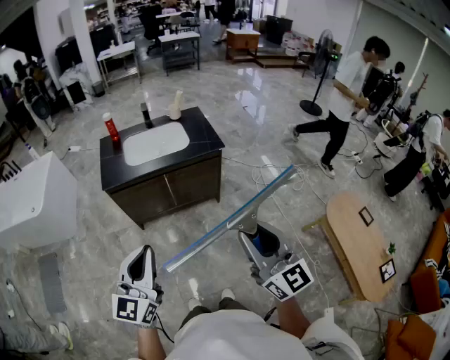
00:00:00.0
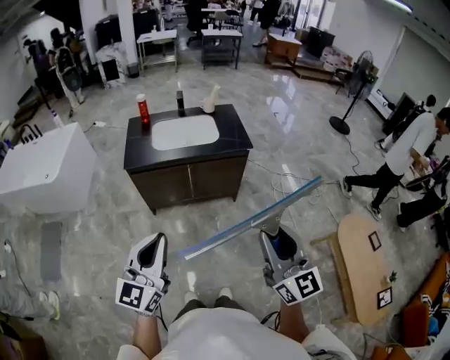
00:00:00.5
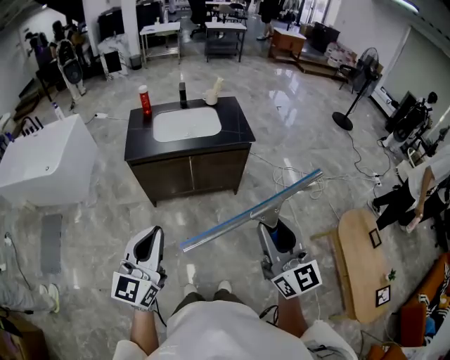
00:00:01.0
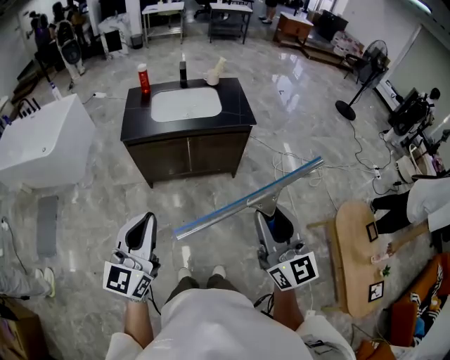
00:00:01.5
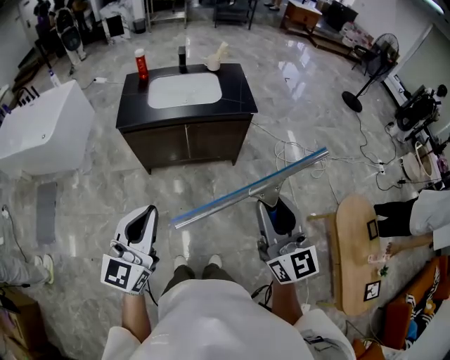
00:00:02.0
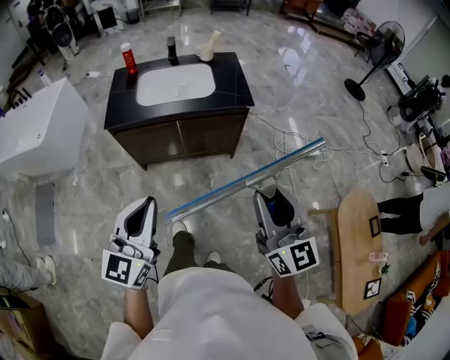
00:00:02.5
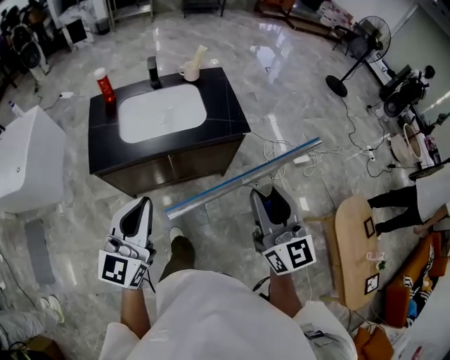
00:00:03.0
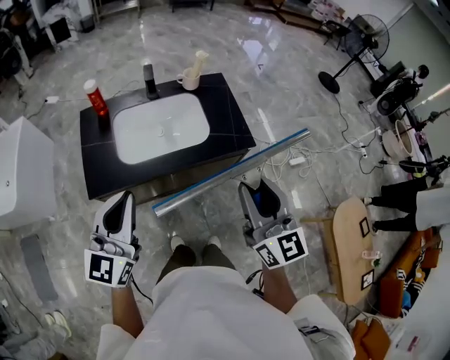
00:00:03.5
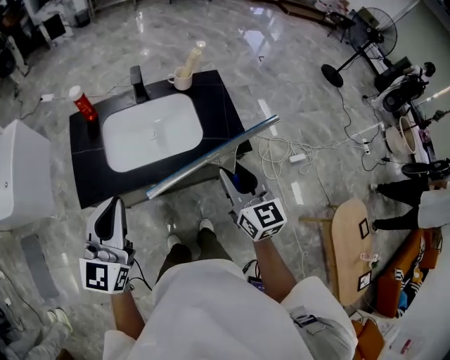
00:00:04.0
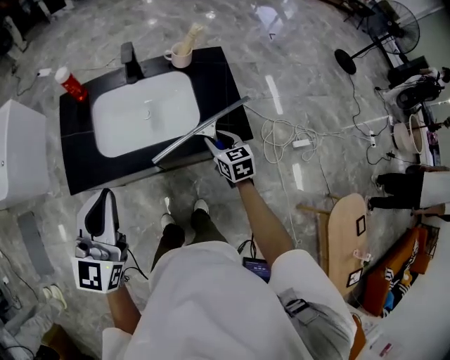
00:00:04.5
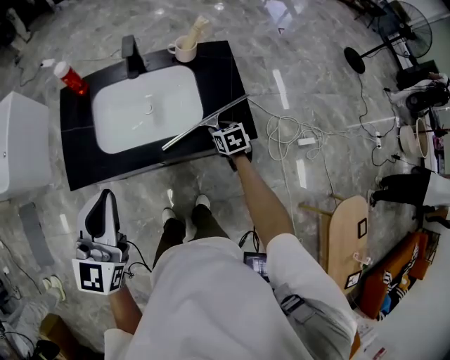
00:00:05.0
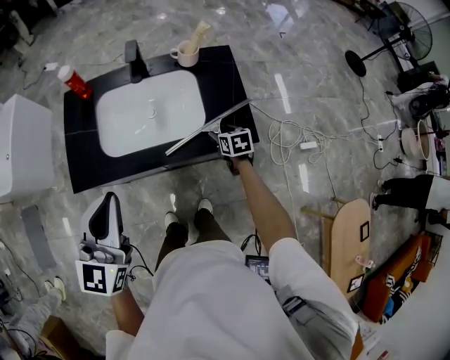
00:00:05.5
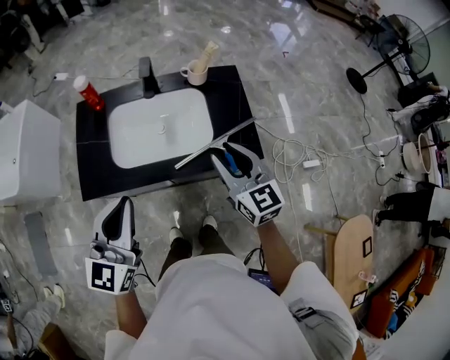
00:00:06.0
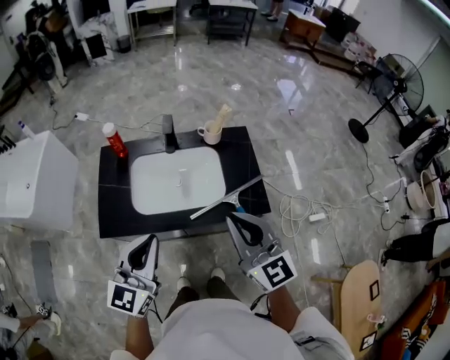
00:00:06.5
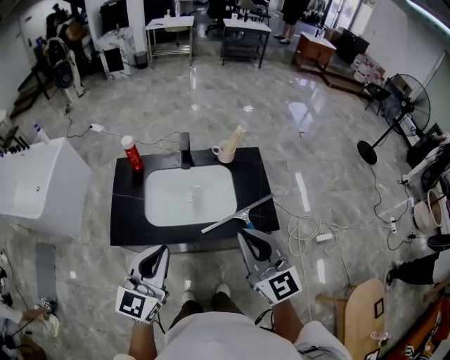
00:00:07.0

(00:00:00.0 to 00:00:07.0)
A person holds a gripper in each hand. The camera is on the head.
00:00:00.0 - 00:00:02.0: The right gripper moves about 5 cm.
00:00:02.0 - 00:00:03.5: Both grippers are carried forward, approximately 40 cm.
00:00:03.5 - 00:00:05.0: The right gripper travels downward and forward by approximately 50 cm, and tips its fingers downward by some 60 degrees, while the left gripper goes about 10 cm forward and to the right.
00:00:05.0 - 00:00:07.0: The right gripper shifts some 40 cm upward, points its fingers approximately 50 degrees further upward, and closes up.

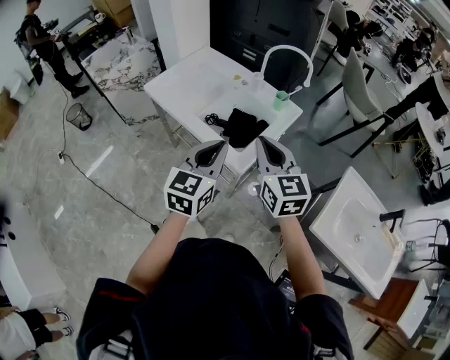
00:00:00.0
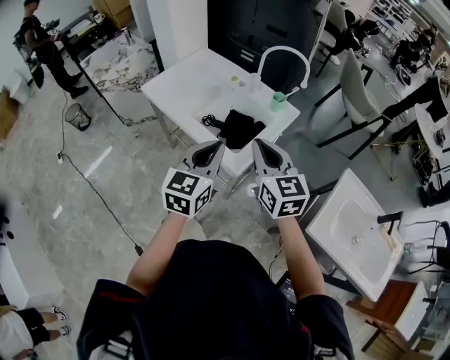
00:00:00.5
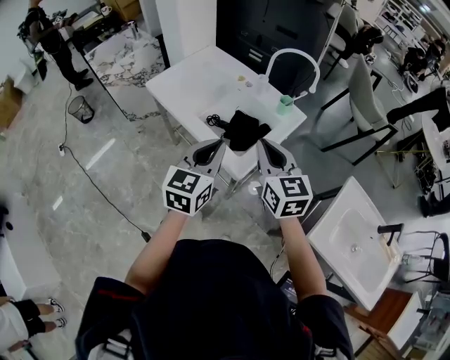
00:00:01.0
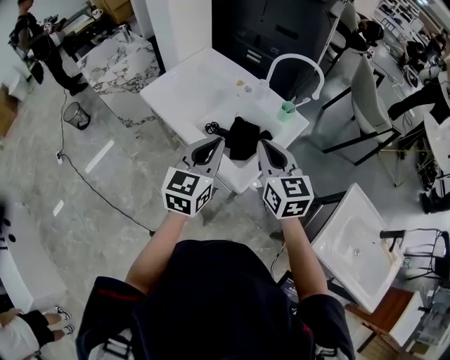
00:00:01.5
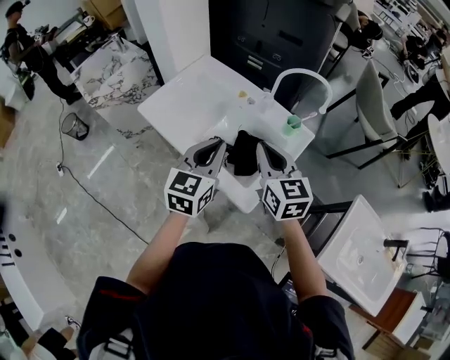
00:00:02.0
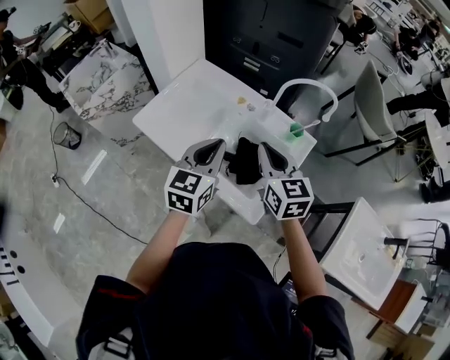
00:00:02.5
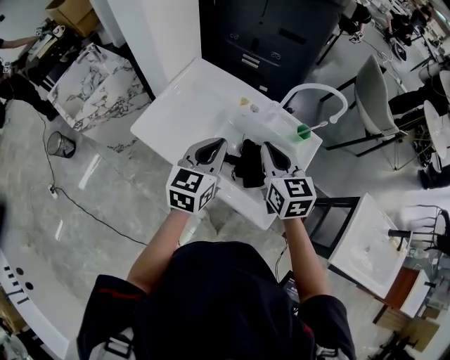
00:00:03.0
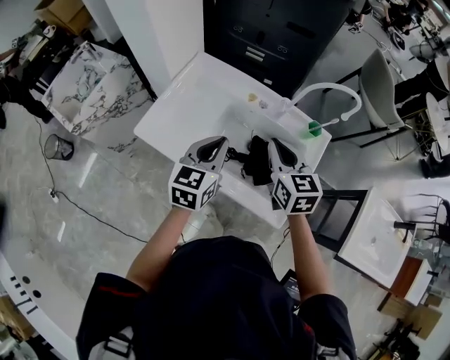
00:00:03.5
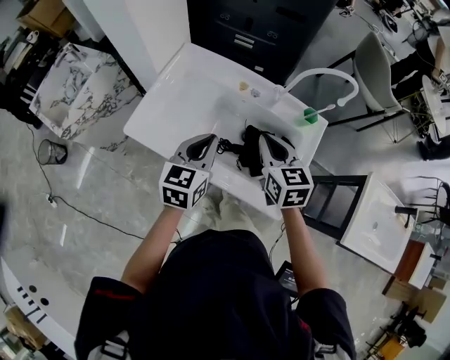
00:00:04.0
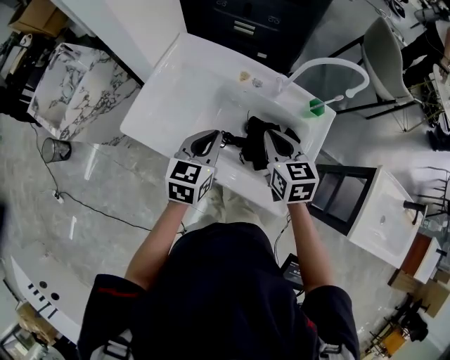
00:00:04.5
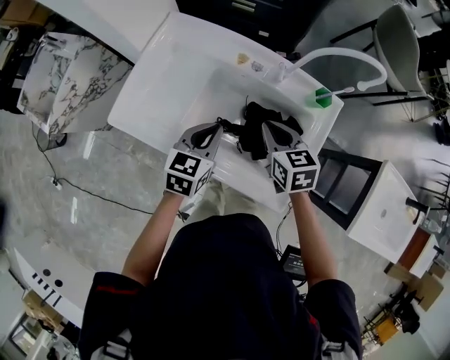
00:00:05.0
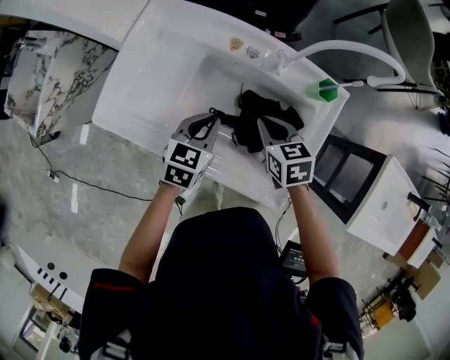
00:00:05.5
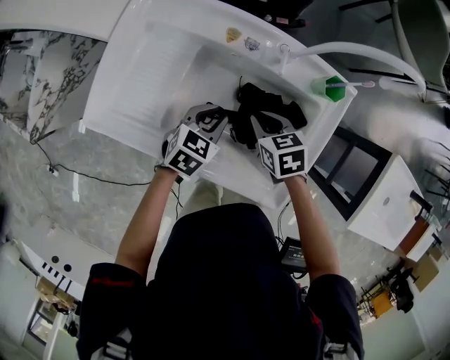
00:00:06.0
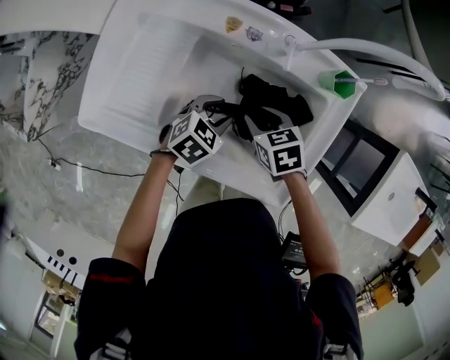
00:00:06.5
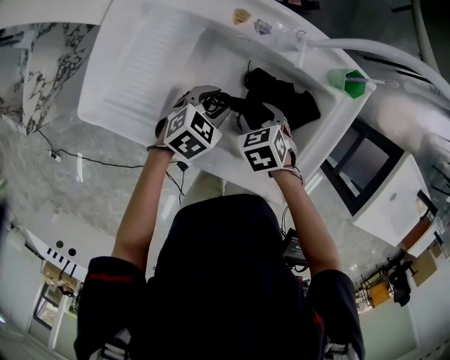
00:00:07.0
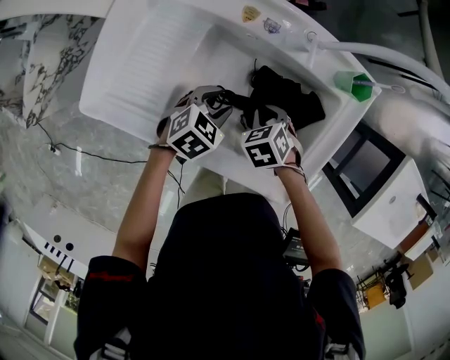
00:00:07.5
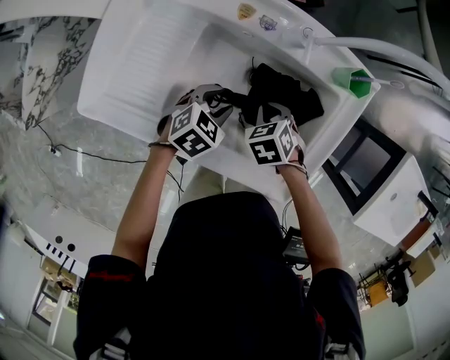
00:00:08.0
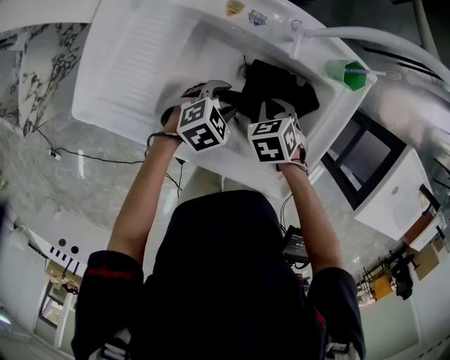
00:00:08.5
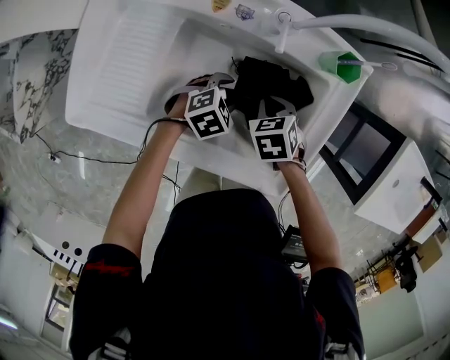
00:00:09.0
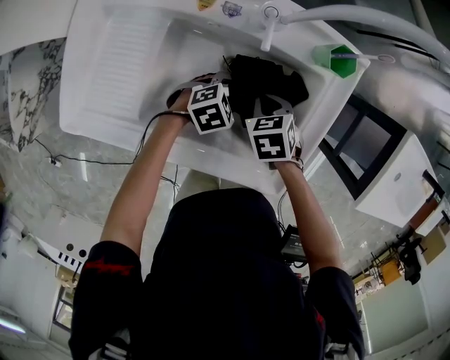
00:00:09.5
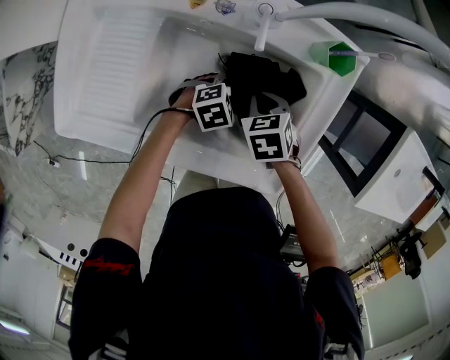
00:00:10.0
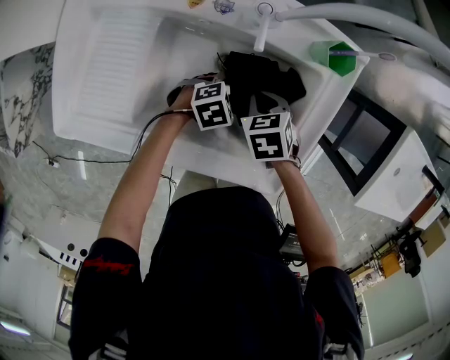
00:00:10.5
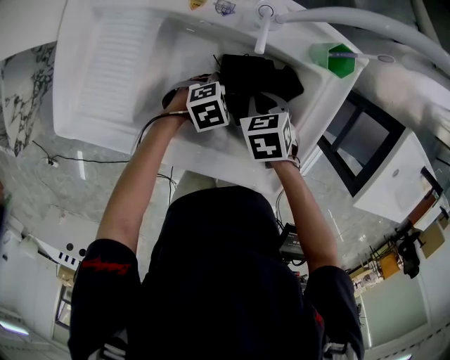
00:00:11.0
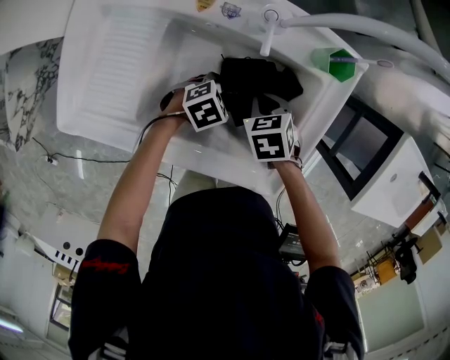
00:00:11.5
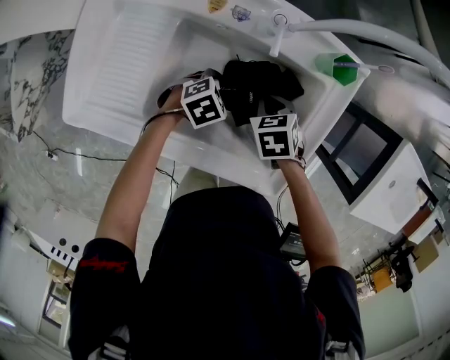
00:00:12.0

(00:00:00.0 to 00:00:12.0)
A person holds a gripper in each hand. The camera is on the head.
00:00:00.0 - 00:00:02.0: The grippers both shift forward by roughly 15 cm.
00:00:02.0 - 00:00:04.0: The right gripper shifts roughly 15 cm forward, downward and to the left; the left gripper shifts about 20 cm to the left, forward and downward.
00:00:04.0 - 00:00:06.0: Both grippers move downward, about 20 cm. The right gripper turns by roughly 30 degrees; the left gripper rotates some 40 degrees.
00:00:06.0 - 00:00:08.0: The two grippers go some 5 cm downward. The right gripper rotates roughly 30 degrees, and opens, then closes once more.
00:00:08.0 - 00:00:10.0: The left gripper moves some 15 cm, and turns by about 30 degrees.
00:00:10.0 - 00:00:12.0: The left gripper ends up approximately 5 cm from where it was.

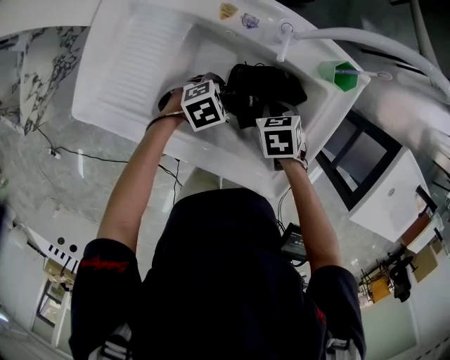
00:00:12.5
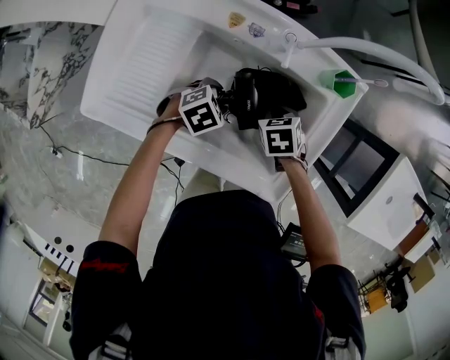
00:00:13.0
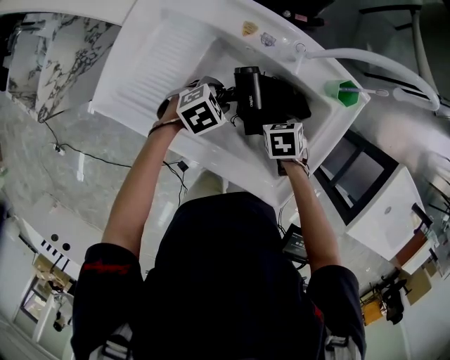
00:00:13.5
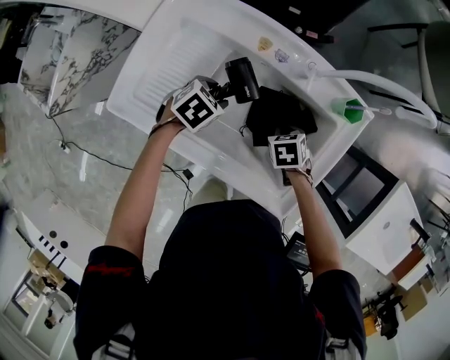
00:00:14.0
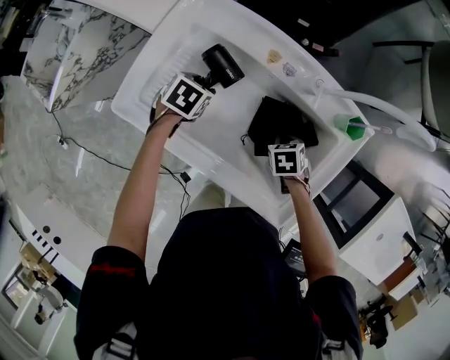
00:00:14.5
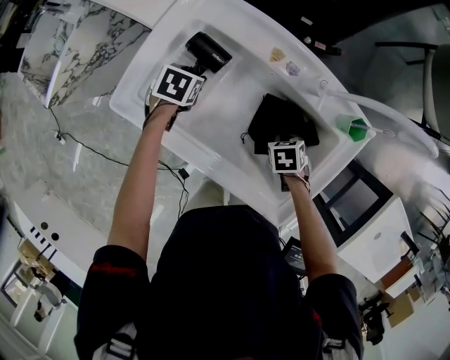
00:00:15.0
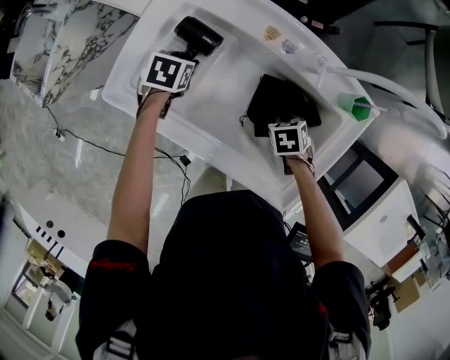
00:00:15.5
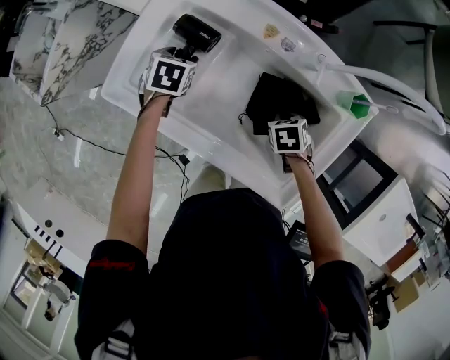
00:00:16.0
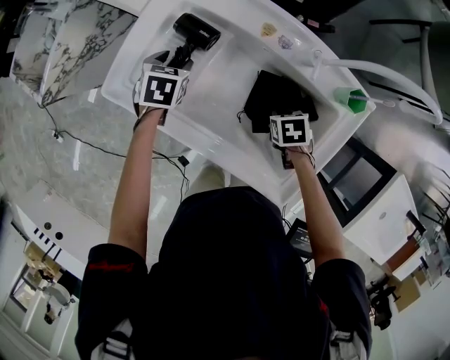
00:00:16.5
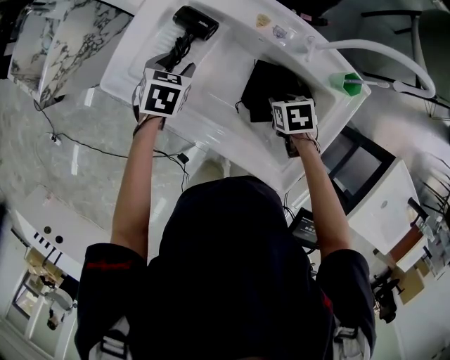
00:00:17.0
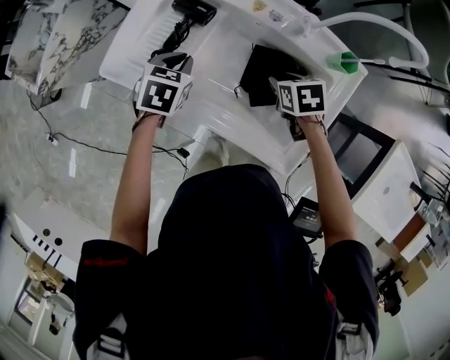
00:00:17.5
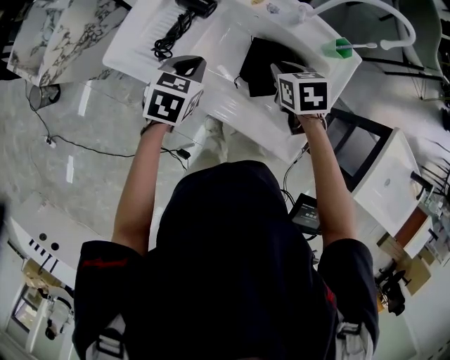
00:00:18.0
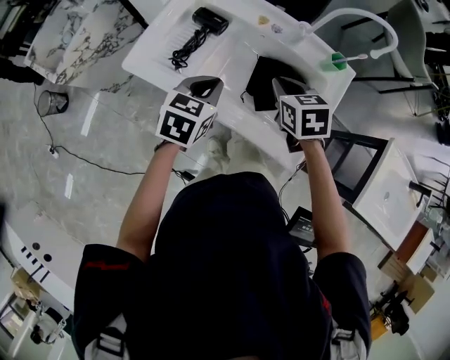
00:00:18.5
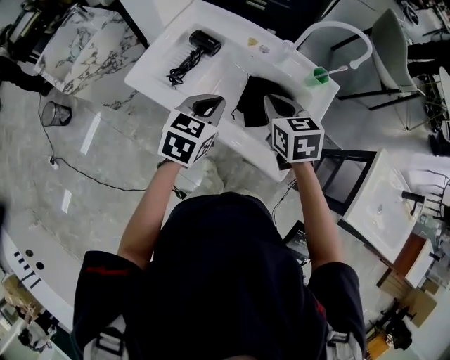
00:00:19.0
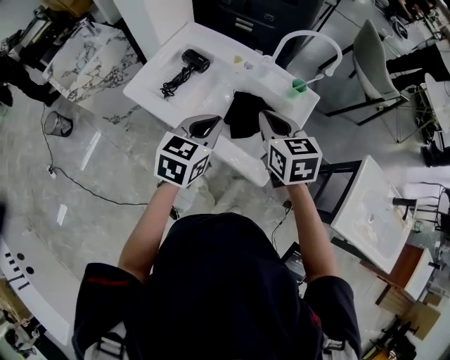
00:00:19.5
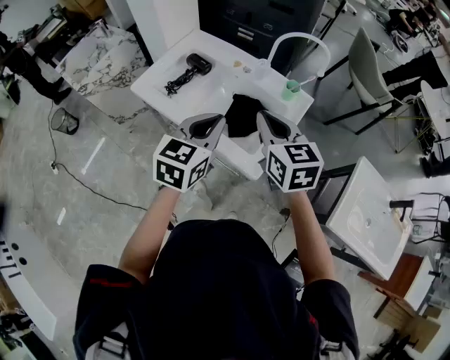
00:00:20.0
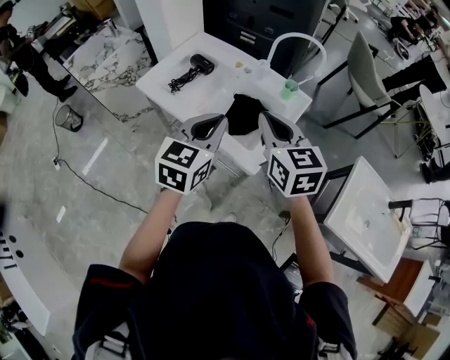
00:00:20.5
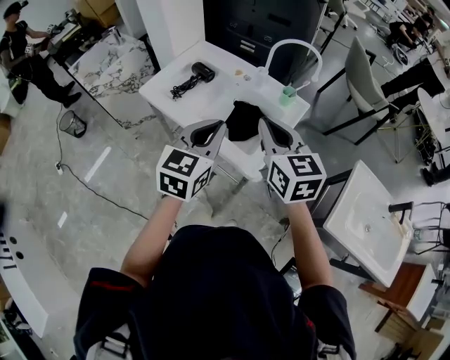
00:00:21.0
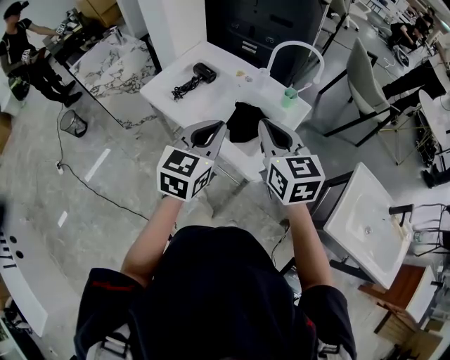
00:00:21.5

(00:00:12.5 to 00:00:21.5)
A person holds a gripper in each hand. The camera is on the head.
00:00:12.5 - 00:00:14.5: The left gripper moves some 20 cm, and changes its angle by roughly 40 degrees.
00:00:14.5 - 00:00:17.0: The right gripper opens up. The left gripper ends up roughly 5 cm from where it was.
00:00:17.0 - 00:00:19.5: The left gripper shifts about 35 cm backward, upward and to the right, points its fingers approximately 30 degrees further upward, and closes its fingers. Meanwhile the right gripper travels upward and backward by approximately 30 cm, points its fingers approximately 40 degrees further upward, and closes up.
00:00:19.5 - 00:00:21.5: Both grippers move backward and upward, roughly 15 cm.
